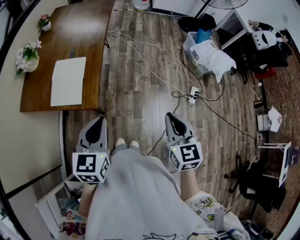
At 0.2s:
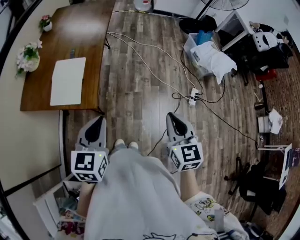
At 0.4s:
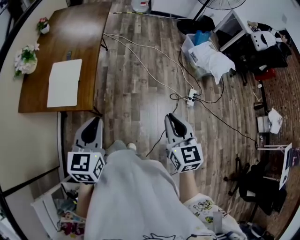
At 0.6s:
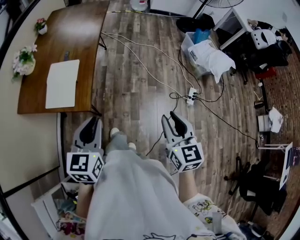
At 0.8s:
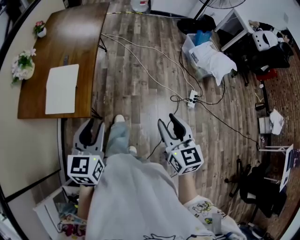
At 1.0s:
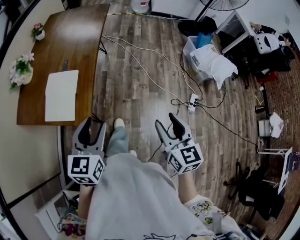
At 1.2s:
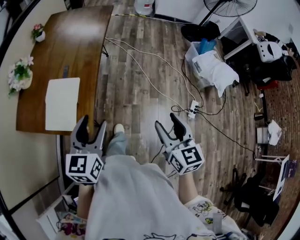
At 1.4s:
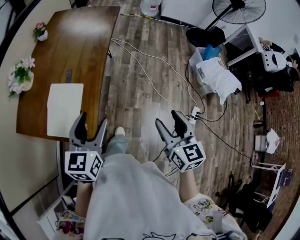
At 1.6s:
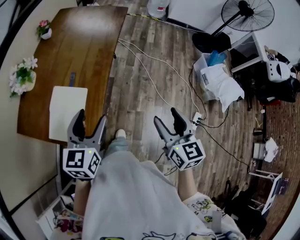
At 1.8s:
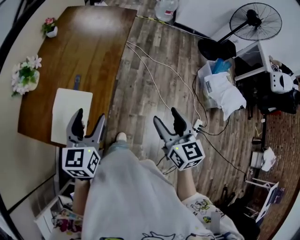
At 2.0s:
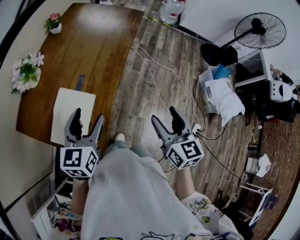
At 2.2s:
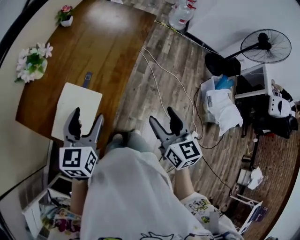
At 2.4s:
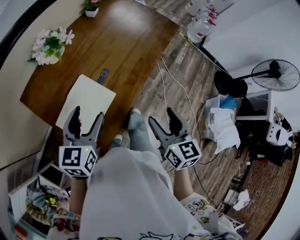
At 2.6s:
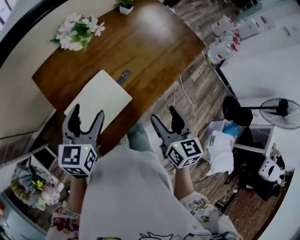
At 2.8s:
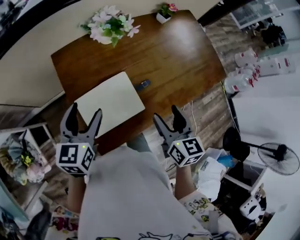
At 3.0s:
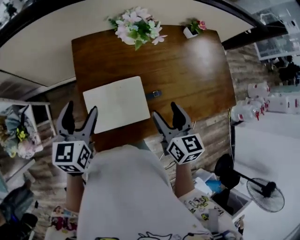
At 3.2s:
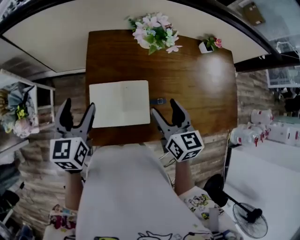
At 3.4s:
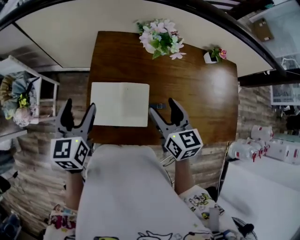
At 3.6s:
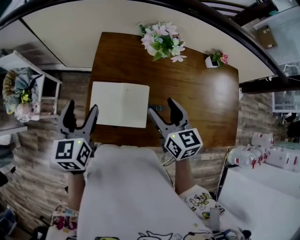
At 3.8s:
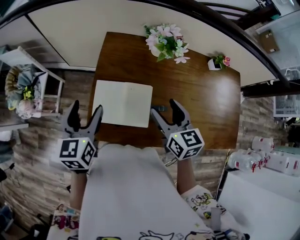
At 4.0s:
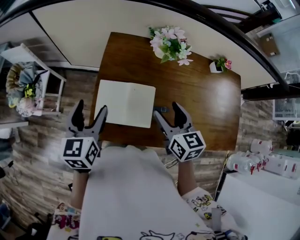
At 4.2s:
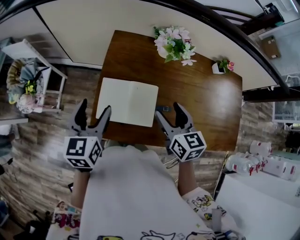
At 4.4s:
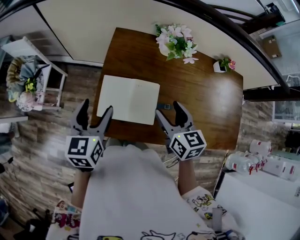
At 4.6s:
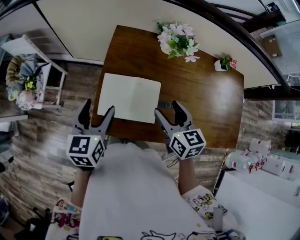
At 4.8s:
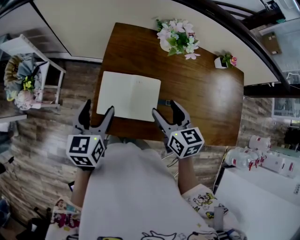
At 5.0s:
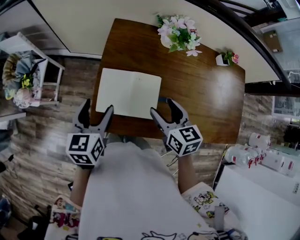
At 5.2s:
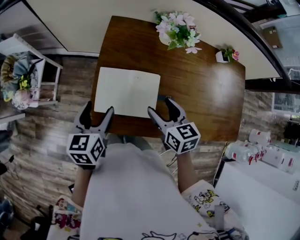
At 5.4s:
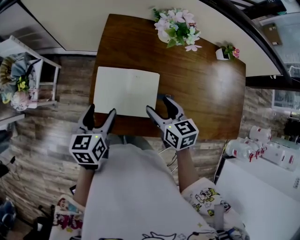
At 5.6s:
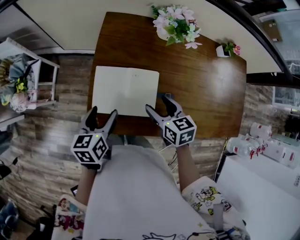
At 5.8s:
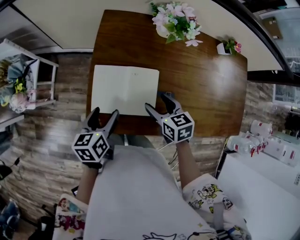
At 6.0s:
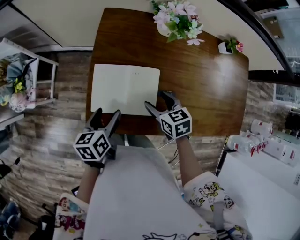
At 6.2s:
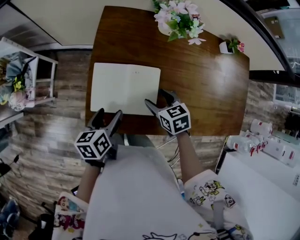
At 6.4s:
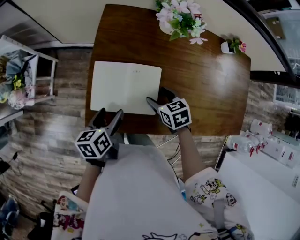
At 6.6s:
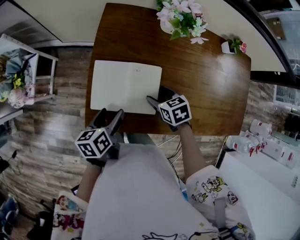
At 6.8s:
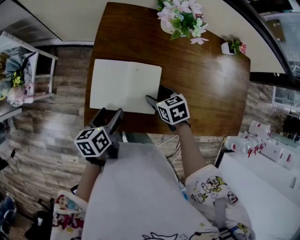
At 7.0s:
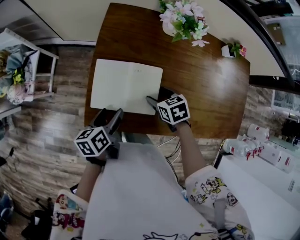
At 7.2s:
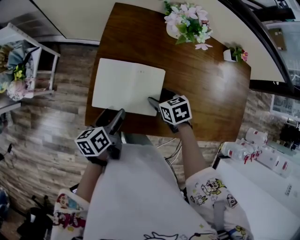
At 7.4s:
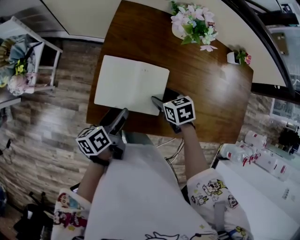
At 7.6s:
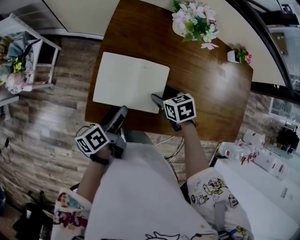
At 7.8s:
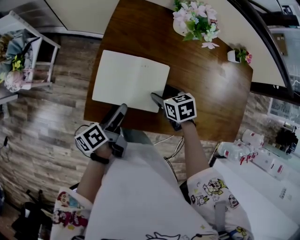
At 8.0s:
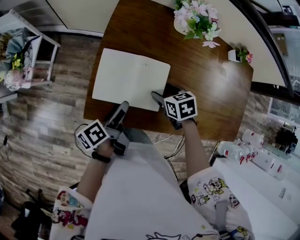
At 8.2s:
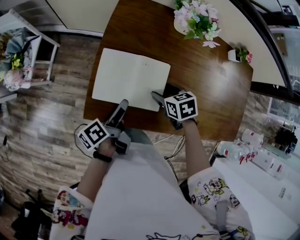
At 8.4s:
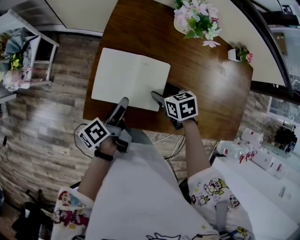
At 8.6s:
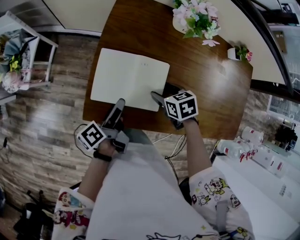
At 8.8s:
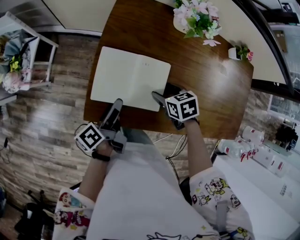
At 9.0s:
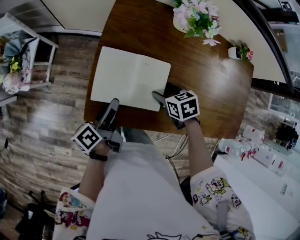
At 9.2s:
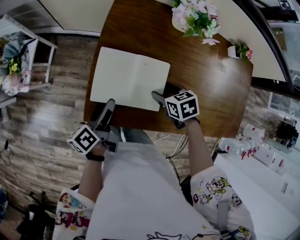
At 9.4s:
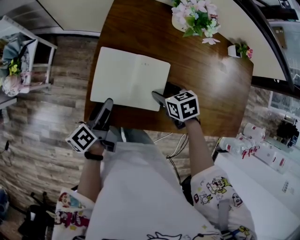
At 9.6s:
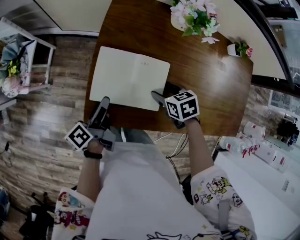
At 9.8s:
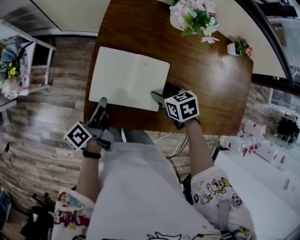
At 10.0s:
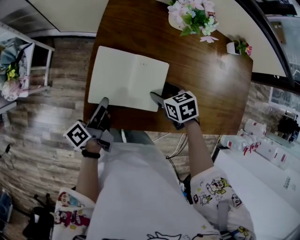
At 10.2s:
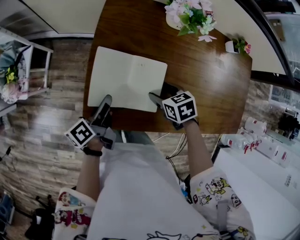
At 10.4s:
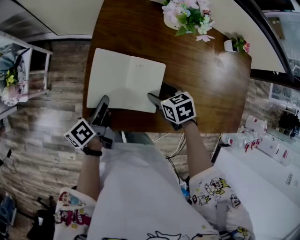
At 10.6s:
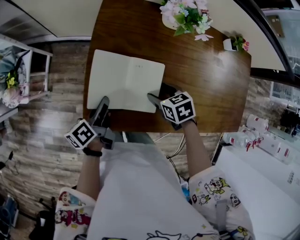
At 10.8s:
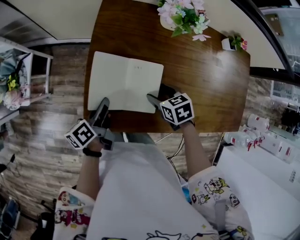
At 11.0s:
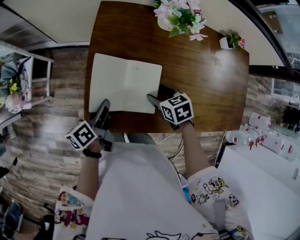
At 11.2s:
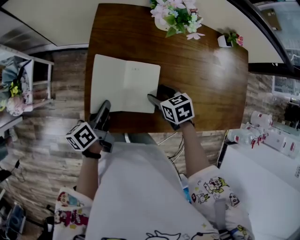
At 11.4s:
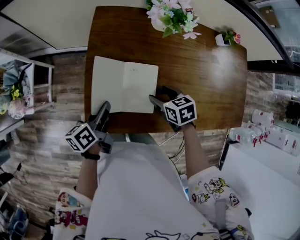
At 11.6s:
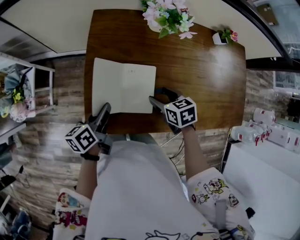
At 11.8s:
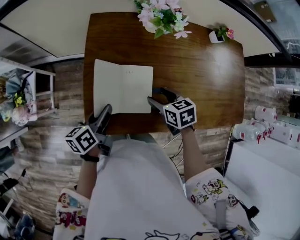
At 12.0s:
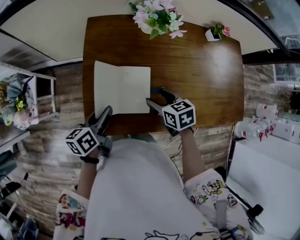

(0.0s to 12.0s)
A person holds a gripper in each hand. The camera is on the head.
0.0s - 1.6s: The two grippers go approximately 25 cm forward. The right gripper opens up; the left gripper opens.
1.6s - 3.0s: The left gripper shifts by about 25 cm, and rotates approximately 70 degrees, while the right gripper moves approximately 40 cm, and rotates about 70 degrees.
3.0s - 4.4s: The right gripper moves some 5 cm, and changes its angle by some 30 degrees; the left gripper heads backward, covering approximately 5 cm, and rotates about 20 degrees.
4.4s - 6.0s: Both grippers move downward, about 15 cm. The right gripper turns by about 20 degrees. The left gripper turns by some 30 degrees.
6.0s - 7.6s: The left gripper swivels roughly 40 degrees.
7.6s - 9.0s: The grippers make only small movements.
9.0s - 10.4s: The left gripper closes its fingers.
10.4s - 12.0s: The two grippers go roughly 5 cm upward. The left gripper swivels some 30 degrees.

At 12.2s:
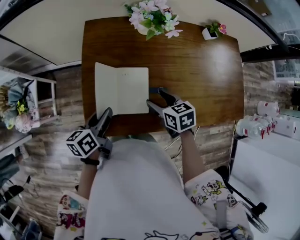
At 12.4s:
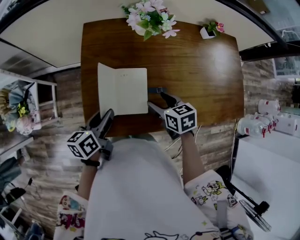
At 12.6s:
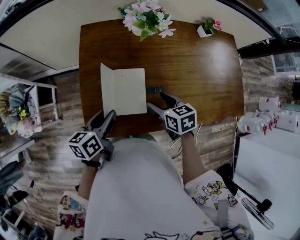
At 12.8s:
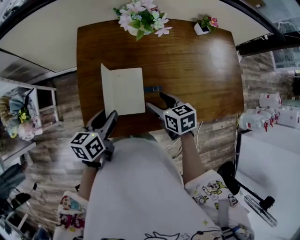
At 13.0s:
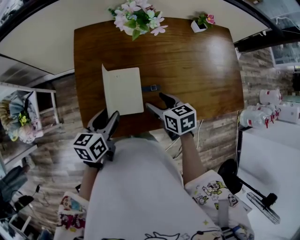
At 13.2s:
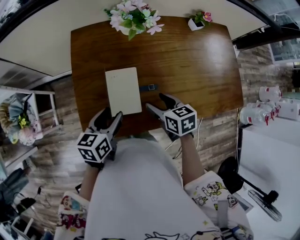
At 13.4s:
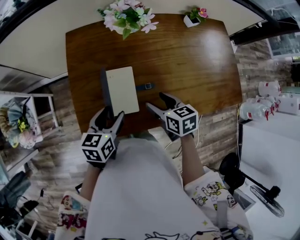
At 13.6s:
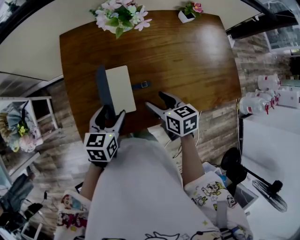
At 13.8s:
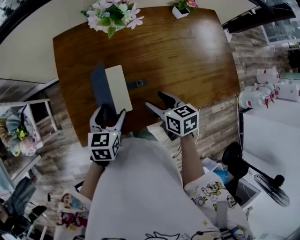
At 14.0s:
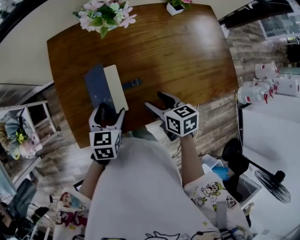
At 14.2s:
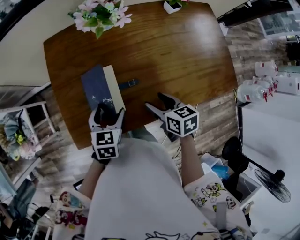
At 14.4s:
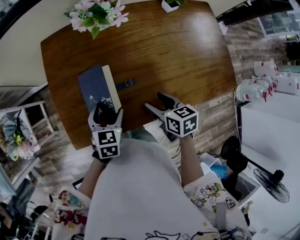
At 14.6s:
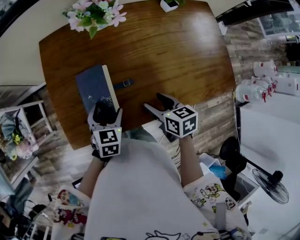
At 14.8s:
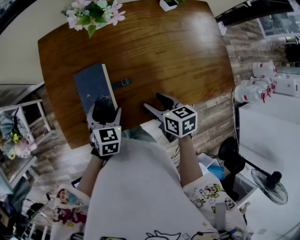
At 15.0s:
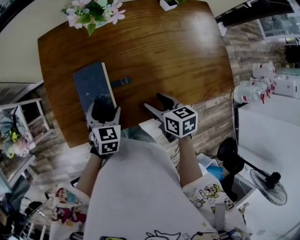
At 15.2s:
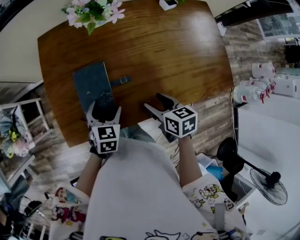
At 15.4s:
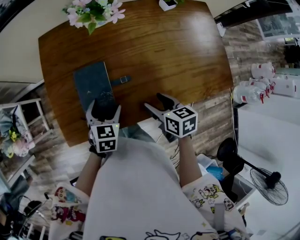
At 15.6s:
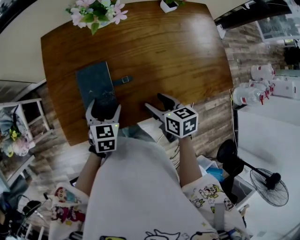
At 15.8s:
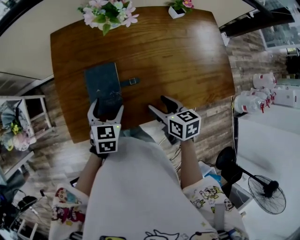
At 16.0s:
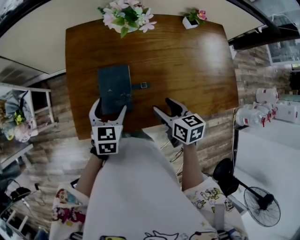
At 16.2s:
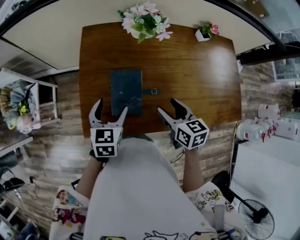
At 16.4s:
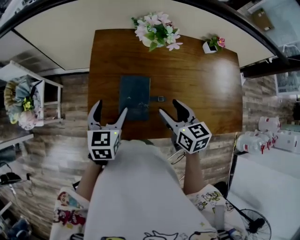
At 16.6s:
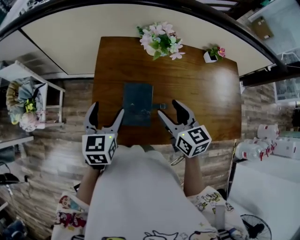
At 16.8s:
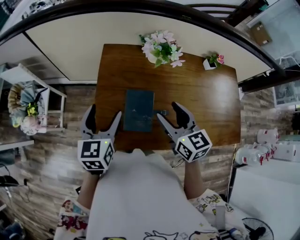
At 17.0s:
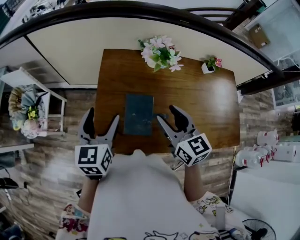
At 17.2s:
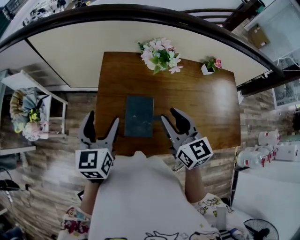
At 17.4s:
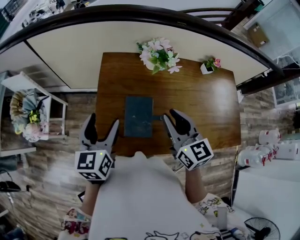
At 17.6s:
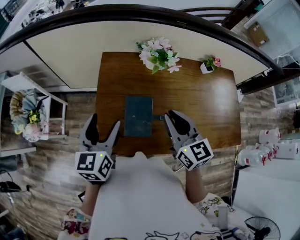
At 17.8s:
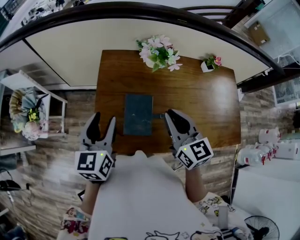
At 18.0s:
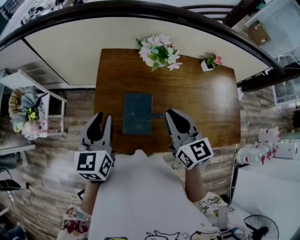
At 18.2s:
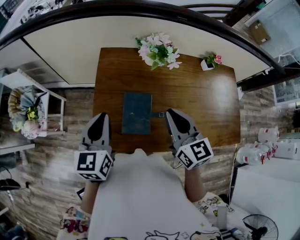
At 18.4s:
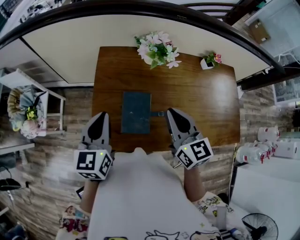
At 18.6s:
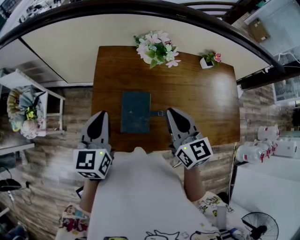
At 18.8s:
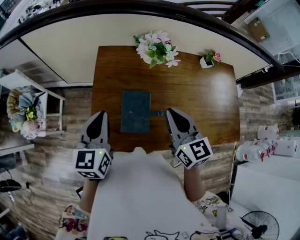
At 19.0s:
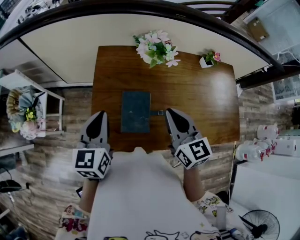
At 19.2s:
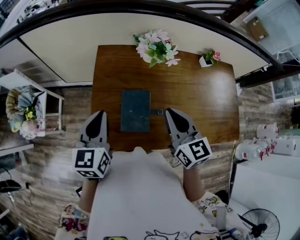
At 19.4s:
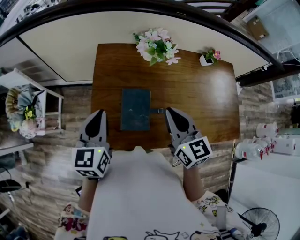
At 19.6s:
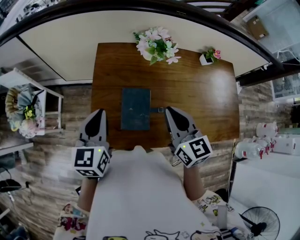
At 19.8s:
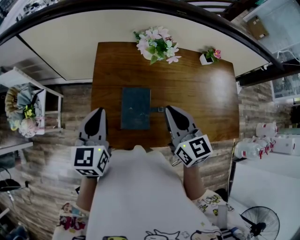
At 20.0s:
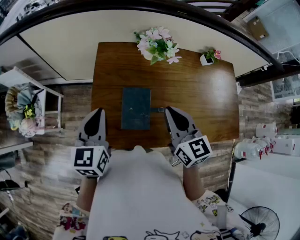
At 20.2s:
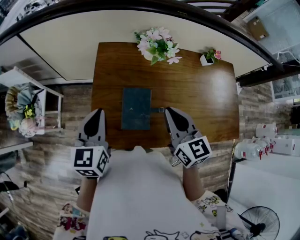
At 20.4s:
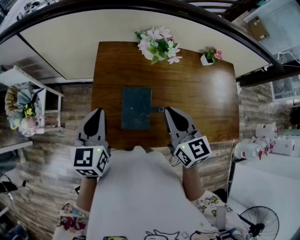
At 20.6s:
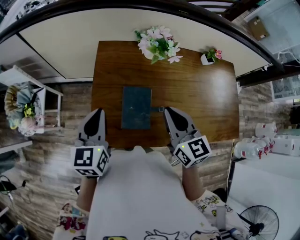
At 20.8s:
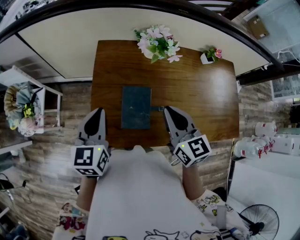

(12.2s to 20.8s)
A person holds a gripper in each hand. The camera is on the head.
12.2s - 13.6s: The left gripper heads to the right, covering roughly 10 cm, rotates approximately 30 degrees, and opens its fingers. The right gripper moves to the right, about 5 cm.
13.6s - 15.0s: The left gripper heads downward and to the right, covering approximately 10 cm, and swivels some 30 degrees. The right gripper moves to the right, about 5 cm.
15.0s - 16.6s: The right gripper is displaced upward, to the left and forward by about 20 cm, and rotates roughly 30 degrees. Meanwhile the left gripper shifts about 20 cm to the left and upward, and rotates approximately 30 degrees.
16.6s - 18.0s: The grippers both shift upward by roughly 5 cm. The right gripper closes up. The left gripper closes up.
18.0s - 19.4s: Neither gripper changes place.
19.4s - 20.8s: Both grippers stay put.

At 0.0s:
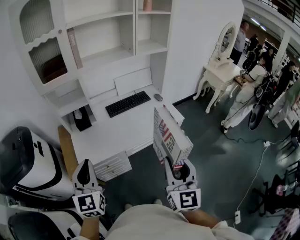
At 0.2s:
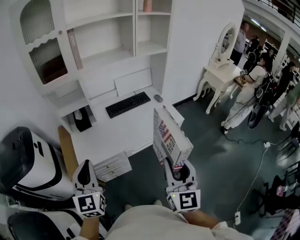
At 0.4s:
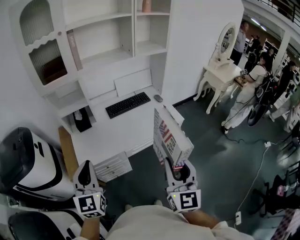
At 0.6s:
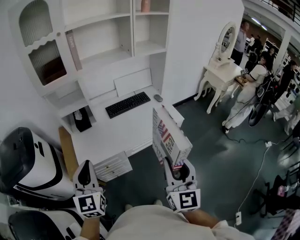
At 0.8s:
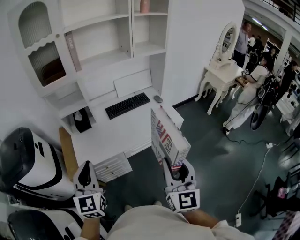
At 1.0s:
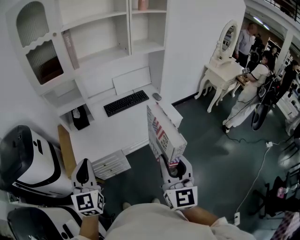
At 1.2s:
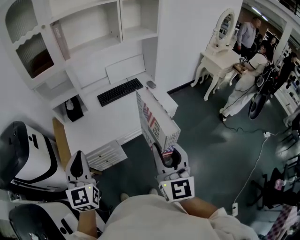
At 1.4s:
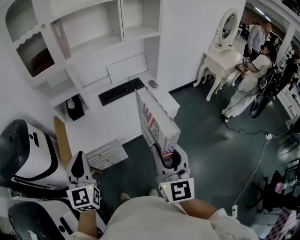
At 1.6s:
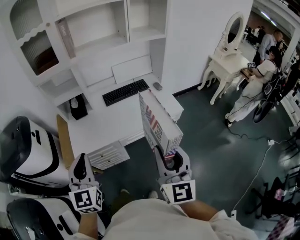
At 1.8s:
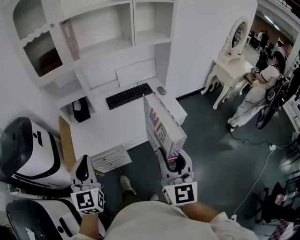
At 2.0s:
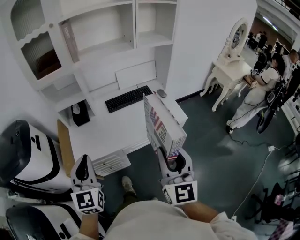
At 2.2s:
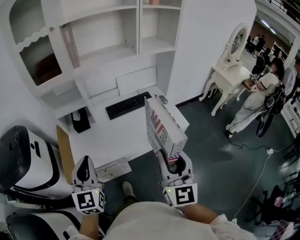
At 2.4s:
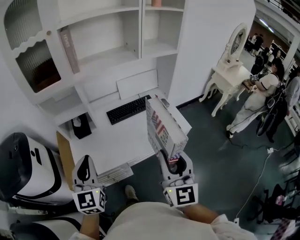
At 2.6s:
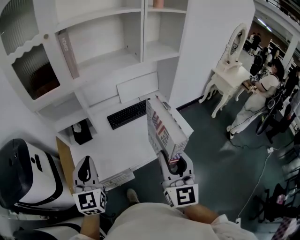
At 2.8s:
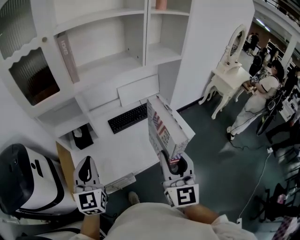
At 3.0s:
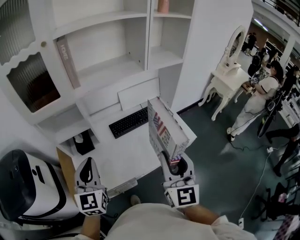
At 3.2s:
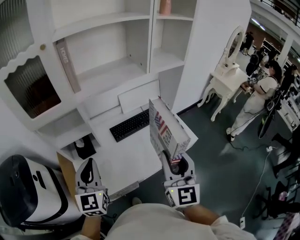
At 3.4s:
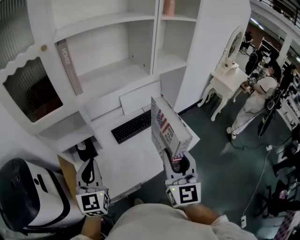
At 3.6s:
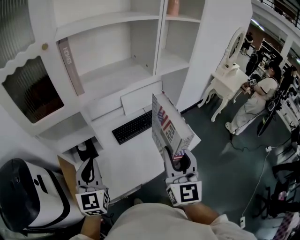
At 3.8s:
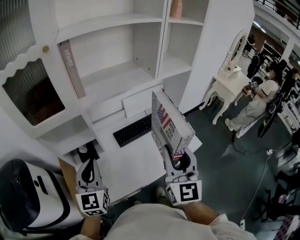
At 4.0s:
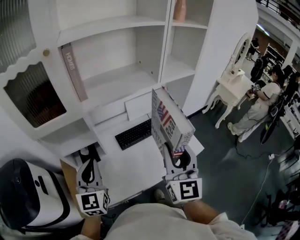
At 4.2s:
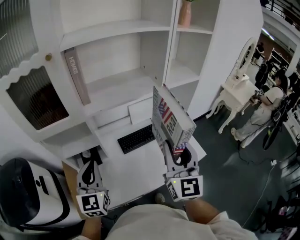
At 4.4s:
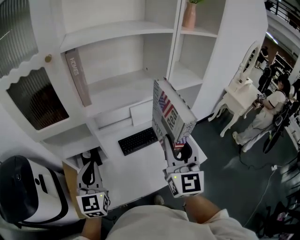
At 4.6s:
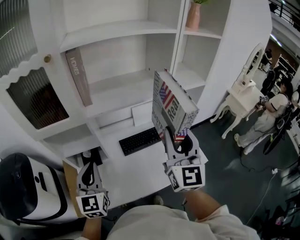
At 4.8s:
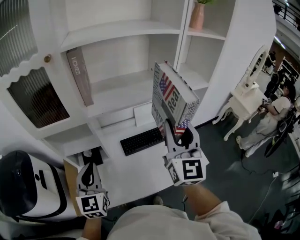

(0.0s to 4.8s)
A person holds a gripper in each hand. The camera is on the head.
0.0s - 1.6s: The left gripper goes some 5 cm to the right.
1.6s - 3.2s: The left gripper is displaced forward by approximately 30 cm; the right gripper moves forward and to the left, some 25 cm.
3.2s - 4.8s: The right gripper is displaced forward and upward by some 20 cm. The left gripper travels forward by about 10 cm.
